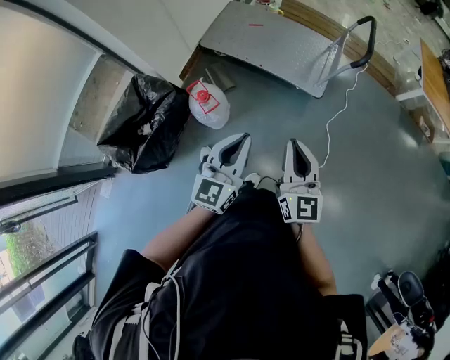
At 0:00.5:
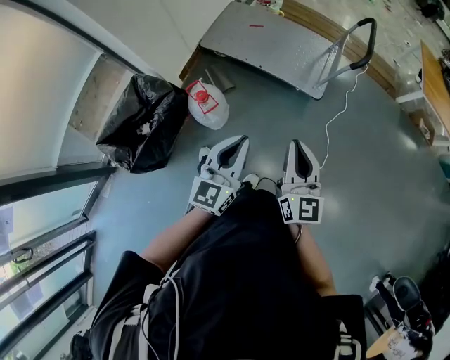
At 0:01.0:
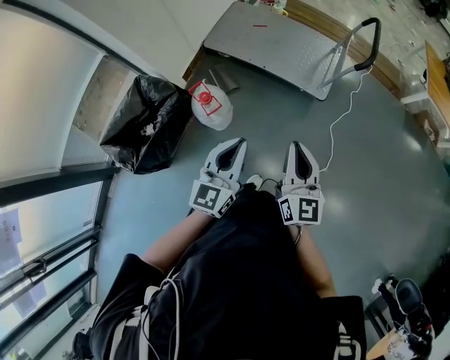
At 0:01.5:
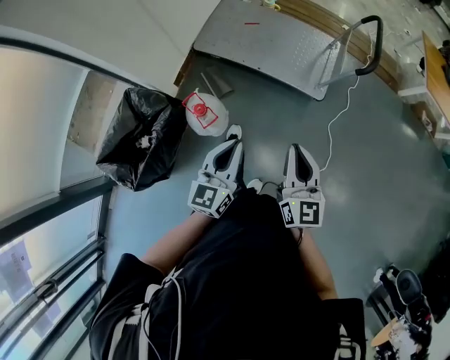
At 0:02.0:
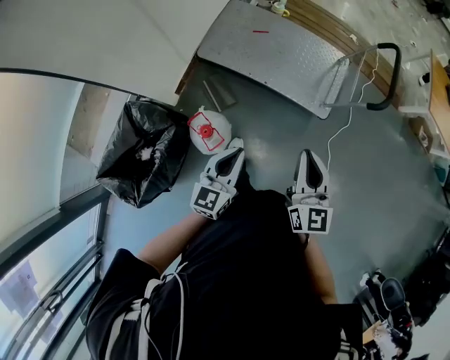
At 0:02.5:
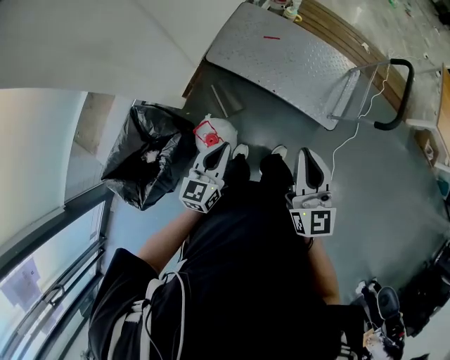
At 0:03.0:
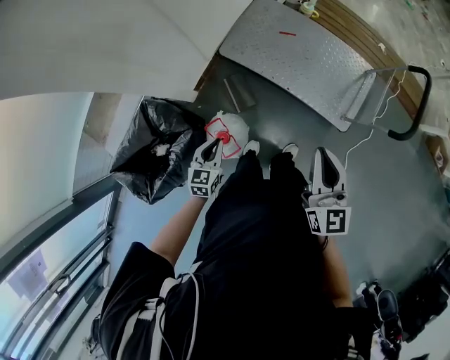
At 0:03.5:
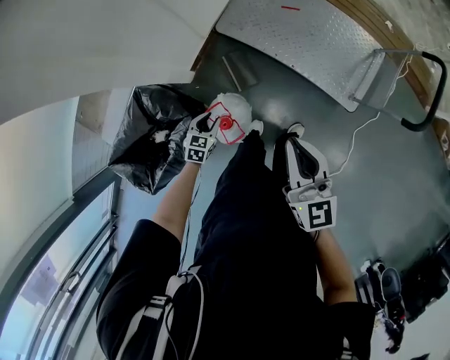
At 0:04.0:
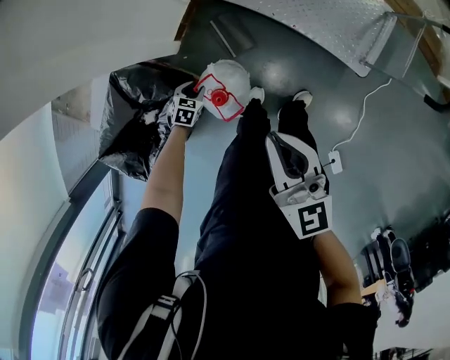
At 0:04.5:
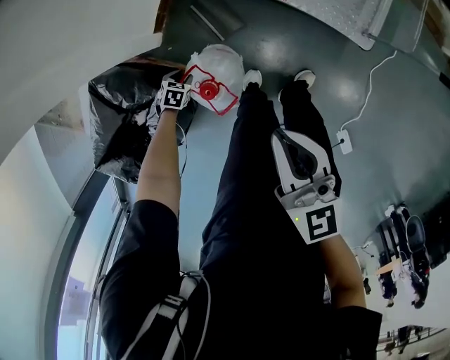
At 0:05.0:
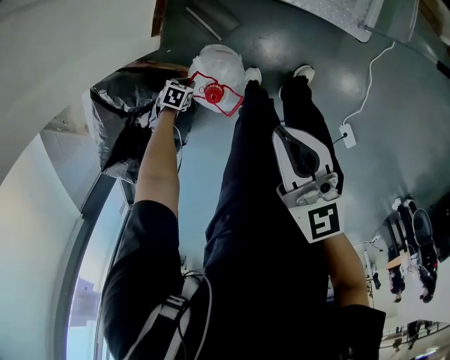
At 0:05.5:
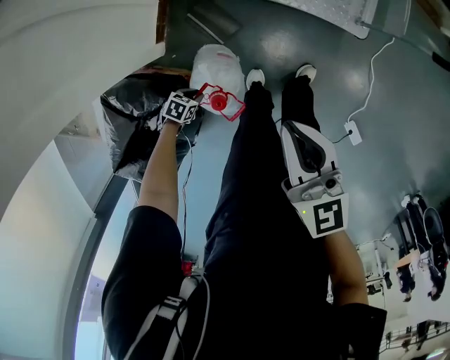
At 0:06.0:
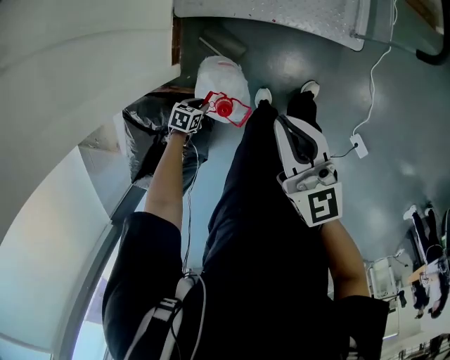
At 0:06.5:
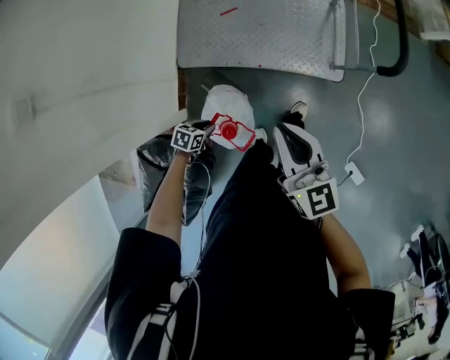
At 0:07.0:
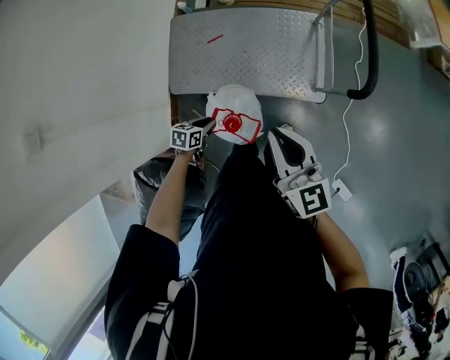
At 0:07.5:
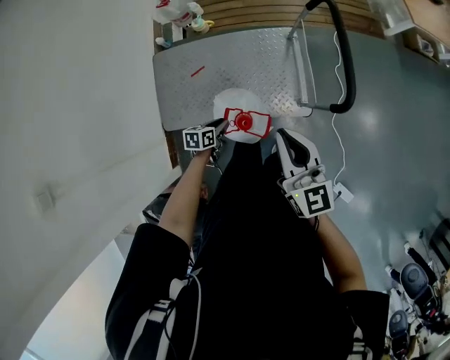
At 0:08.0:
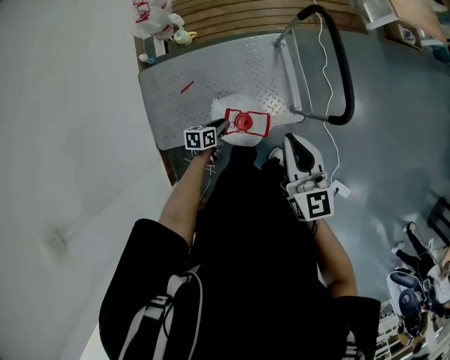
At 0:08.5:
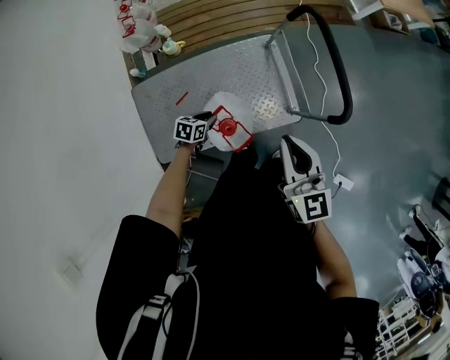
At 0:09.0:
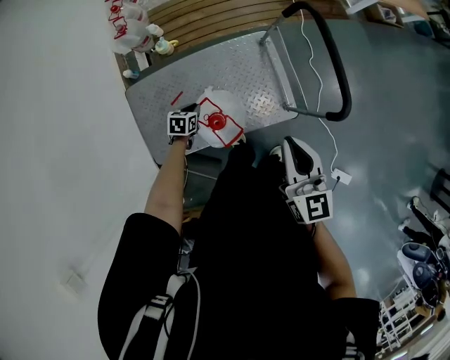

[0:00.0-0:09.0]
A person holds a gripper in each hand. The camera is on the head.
0:00.0 to 0:02.0: The left gripper goes approximately 30 cm forward, to the left and downward. Meanwhile the right gripper moves forward, some 25 cm.
0:02.0 to 0:04.5: The right gripper travels downward, to the left and forward by some 25 cm, and turns by some 20 degrees. Meanwhile the left gripper travels downward and to the left by approximately 60 cm, tilts its fingers some 60 degrees downward, and opens.
0:04.5 to 0:07.0: The right gripper changes place by roughly 40 cm, and rotates approximately 20 degrees, while the left gripper shifts by some 50 cm.
0:07.0 to 0:09.0: The left gripper shifts by about 35 cm; the right gripper shifts by some 20 cm, and turns by roughly 30 degrees.

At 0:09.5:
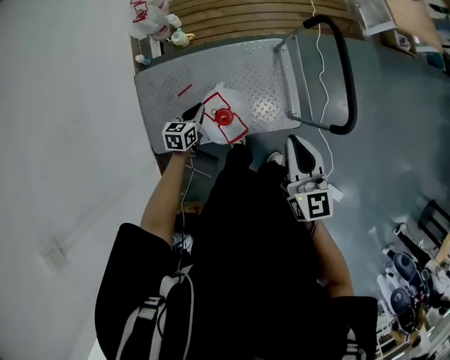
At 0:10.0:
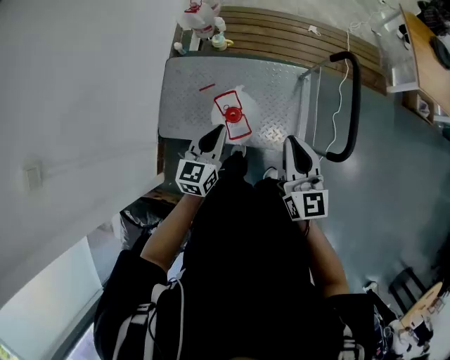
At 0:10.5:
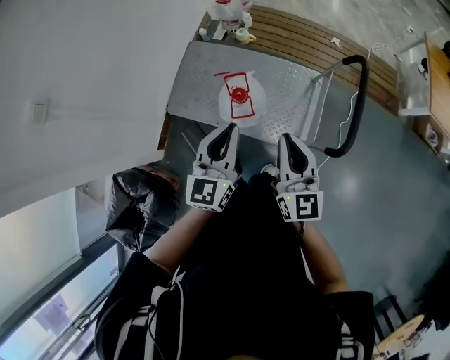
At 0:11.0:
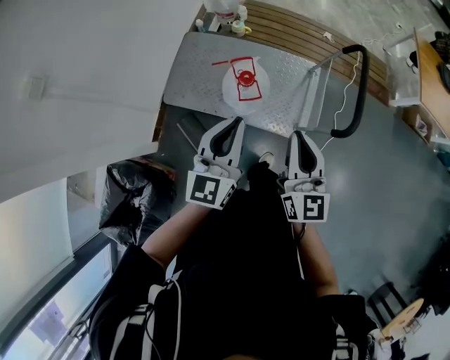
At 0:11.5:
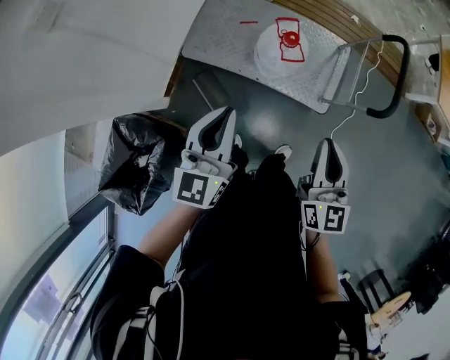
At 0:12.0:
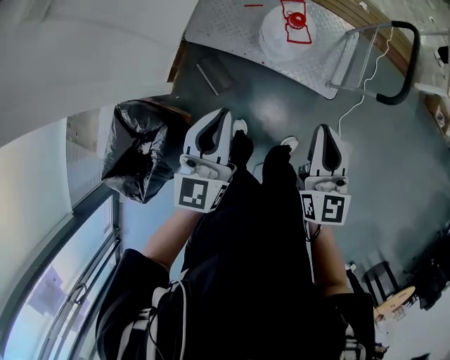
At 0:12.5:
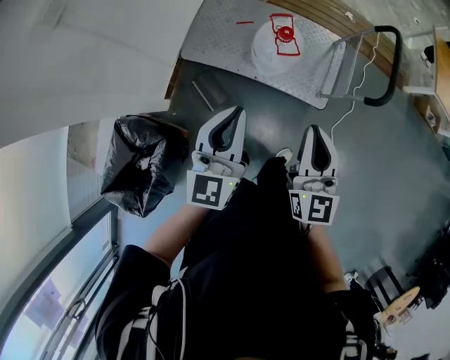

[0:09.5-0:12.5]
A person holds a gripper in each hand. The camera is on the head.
0:09.5 to 0:11.0: The right gripper changes place by about 20 cm, and rotates some 20 degrees; the left gripper shifts about 35 cm upward, and tilts its fingers approximately 40 degrees upward.
0:11.0 to 0:12.5: Both grippers move backward and to the left, roughly 20 cm.

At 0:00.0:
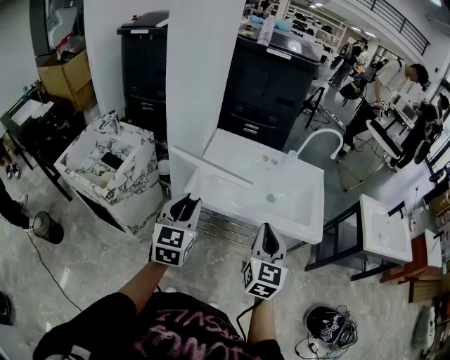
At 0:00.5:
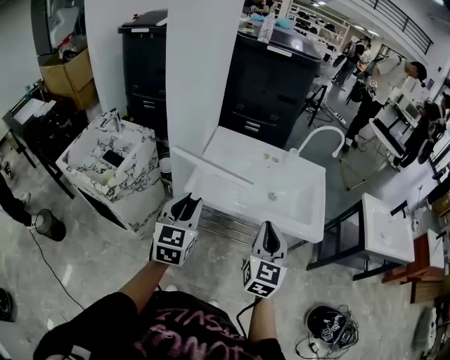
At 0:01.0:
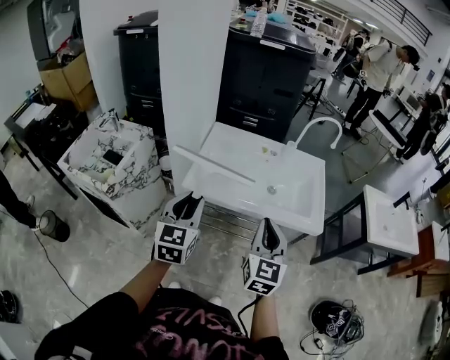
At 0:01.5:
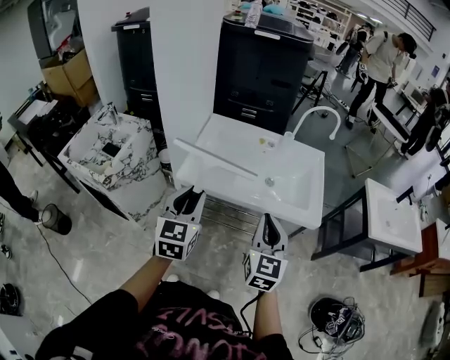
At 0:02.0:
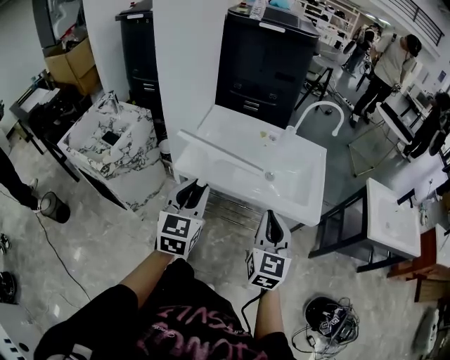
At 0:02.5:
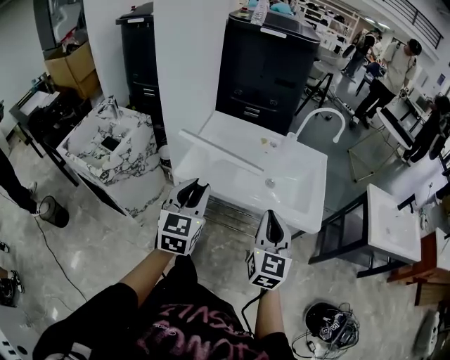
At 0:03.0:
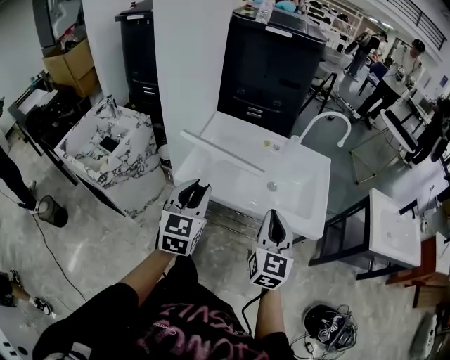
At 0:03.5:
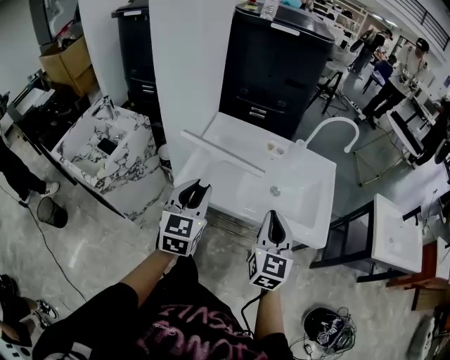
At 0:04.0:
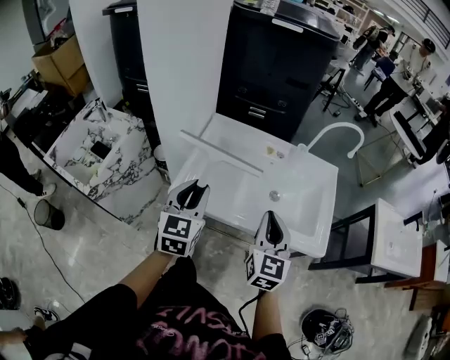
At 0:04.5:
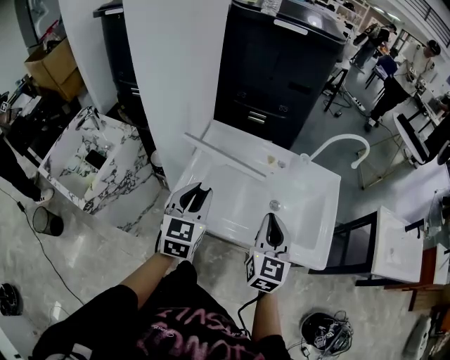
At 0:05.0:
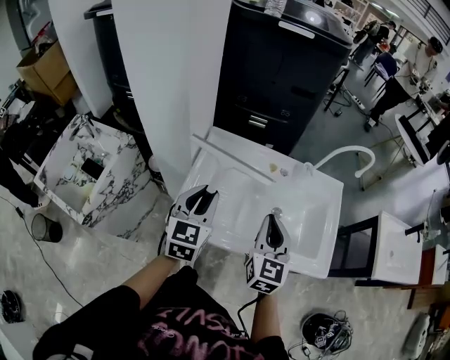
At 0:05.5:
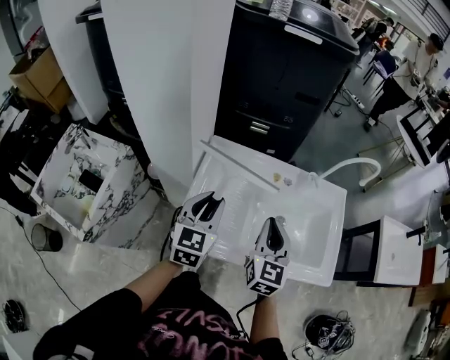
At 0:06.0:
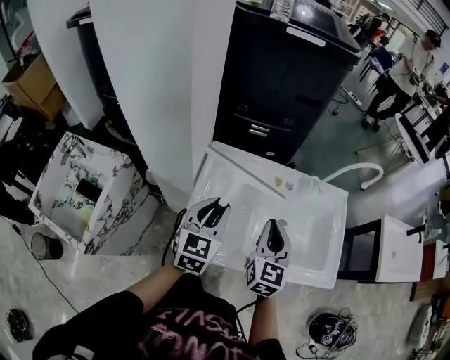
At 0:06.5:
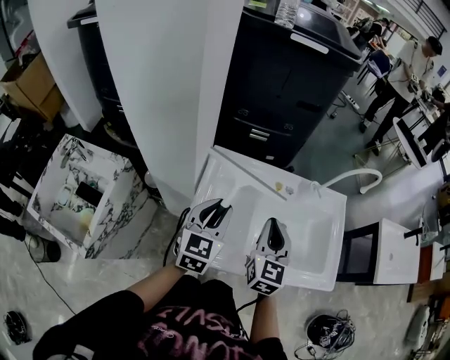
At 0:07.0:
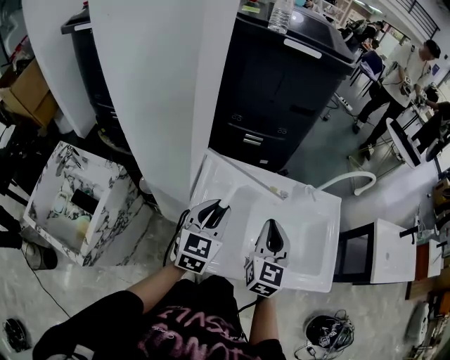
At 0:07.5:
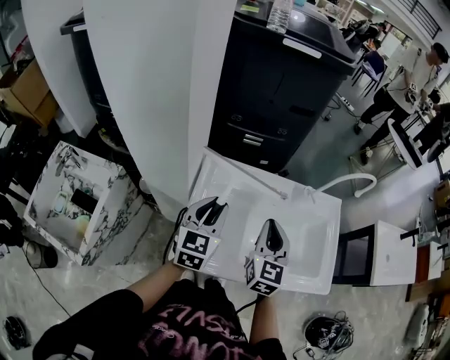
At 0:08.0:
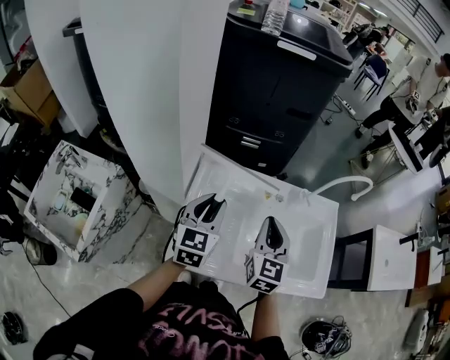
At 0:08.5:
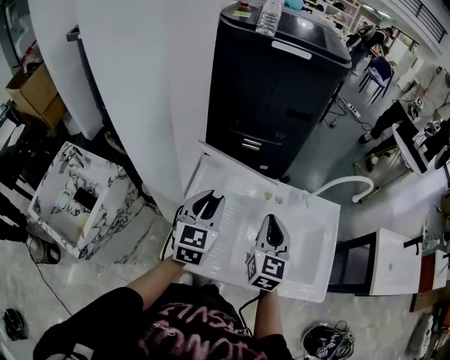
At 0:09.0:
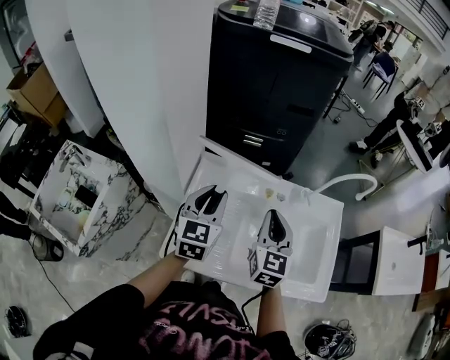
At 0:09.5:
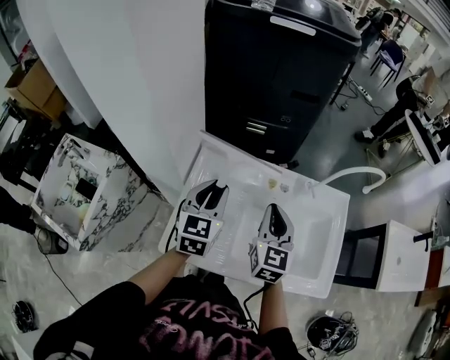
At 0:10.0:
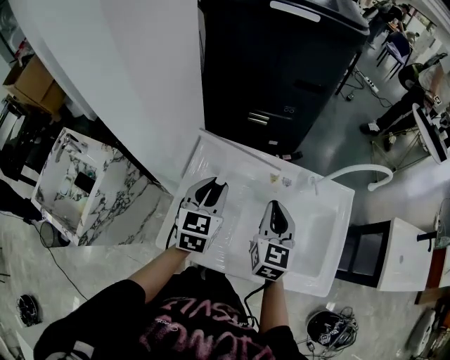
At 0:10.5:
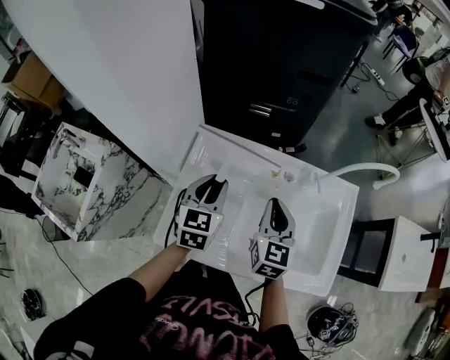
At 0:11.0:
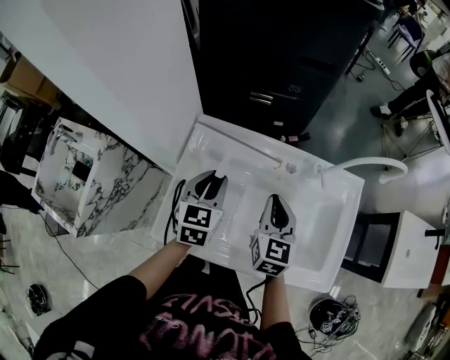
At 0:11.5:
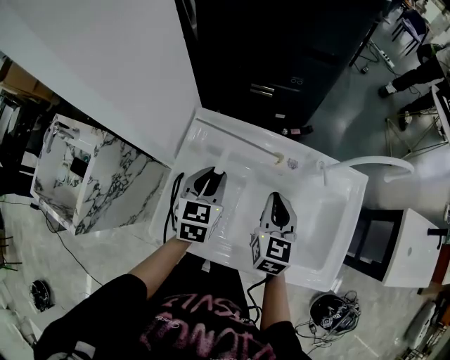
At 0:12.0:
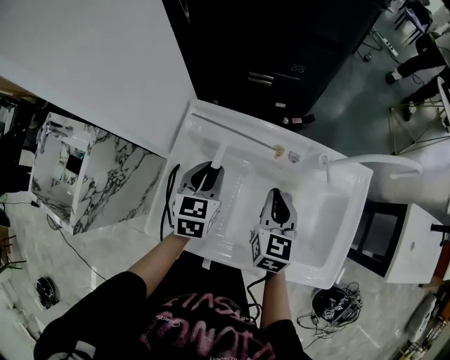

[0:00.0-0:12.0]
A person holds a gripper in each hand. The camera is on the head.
0:00.0 to 0:02.0: Both grippers travel together to the right, roughly 10 cm.
0:02.0 to 0:04.0: Both grippers move forward, approximately 15 cm.
0:04.0 to 0:06.0: The right gripper shifts about 20 cm forward and to the left. The left gripper travels forward by some 15 cm.
0:06.0 to 0:08.0: The left gripper changes place by about 5 cm. Meanwhile the right gripper moves roughly 5 cm.
0:08.0 to 0:10.0: The grippers both shift downward by approximately 5 cm.
0:10.0 to 0:12.0: The two grippers go roughly 10 cm downward.

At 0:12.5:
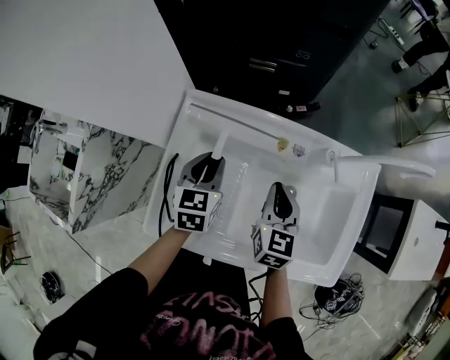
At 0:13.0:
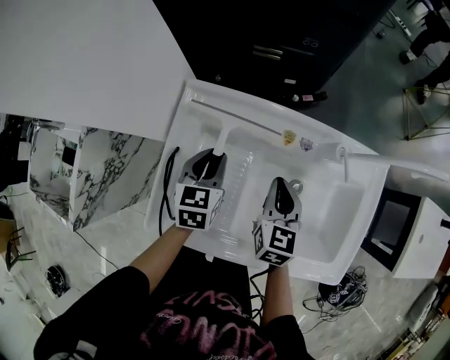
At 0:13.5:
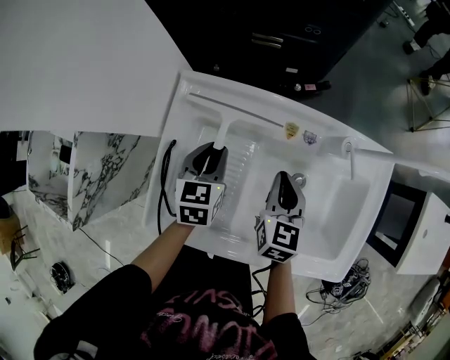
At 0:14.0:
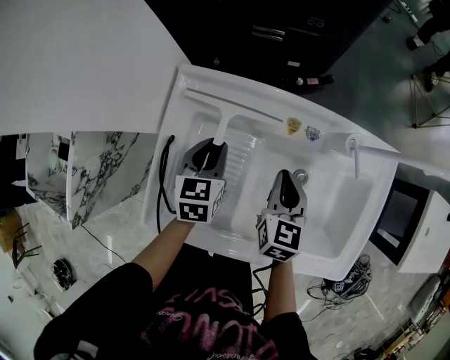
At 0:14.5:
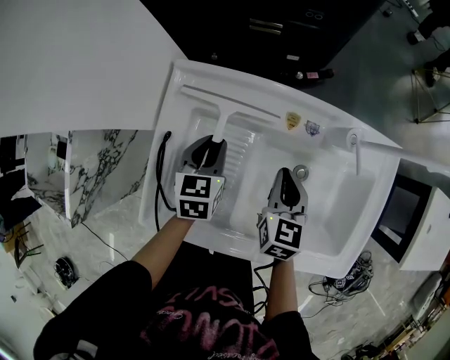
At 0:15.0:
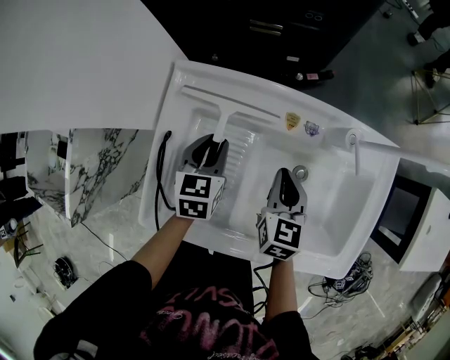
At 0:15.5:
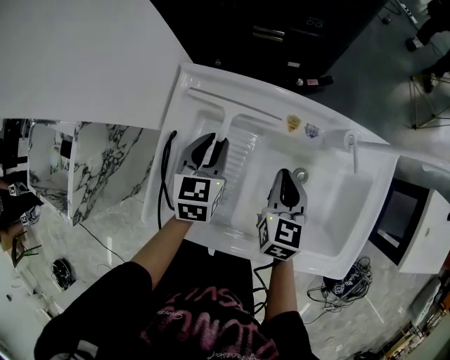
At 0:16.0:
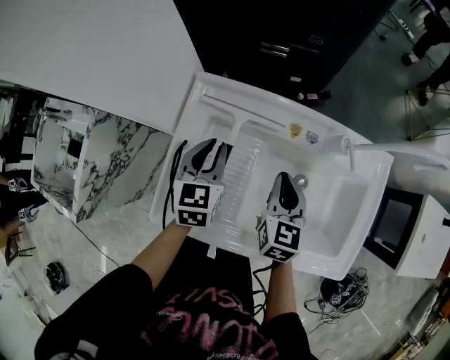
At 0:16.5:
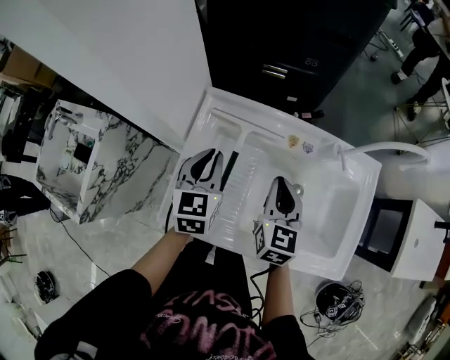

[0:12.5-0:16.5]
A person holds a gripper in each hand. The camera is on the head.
0:12.5 to 0:14.5: The two grippers go some 5 cm downward.
0:14.5 to 0:16.5: The right gripper heads upward and to the left, covering roughly 10 cm. Meanwhile the left gripper travels upward by some 15 cm.
